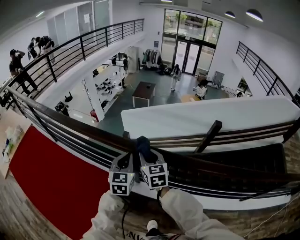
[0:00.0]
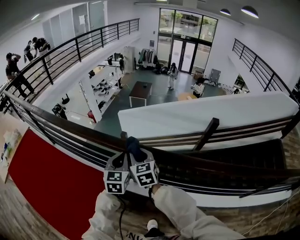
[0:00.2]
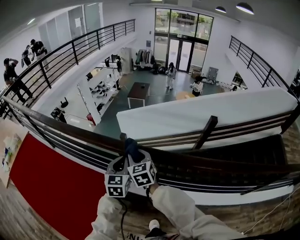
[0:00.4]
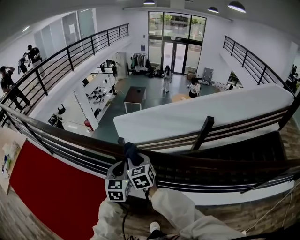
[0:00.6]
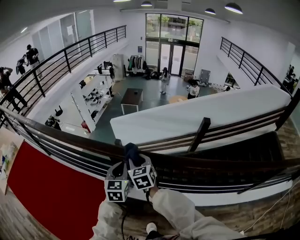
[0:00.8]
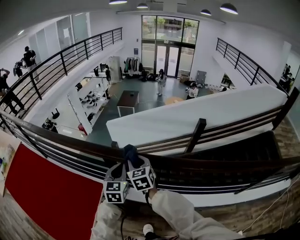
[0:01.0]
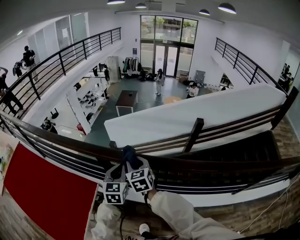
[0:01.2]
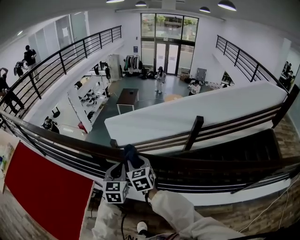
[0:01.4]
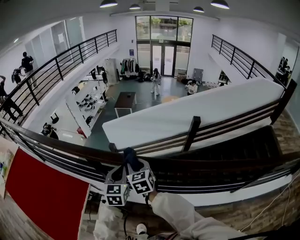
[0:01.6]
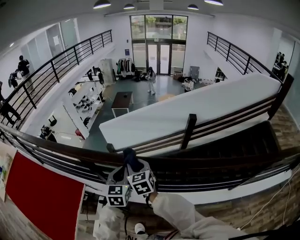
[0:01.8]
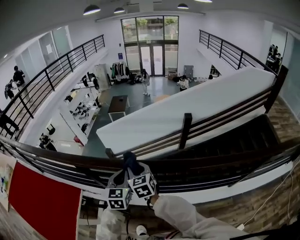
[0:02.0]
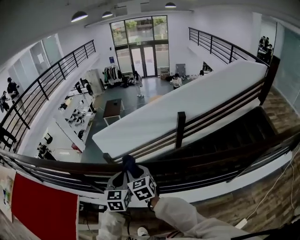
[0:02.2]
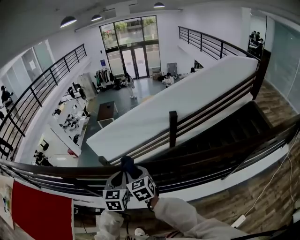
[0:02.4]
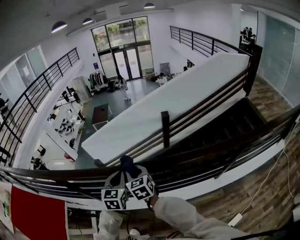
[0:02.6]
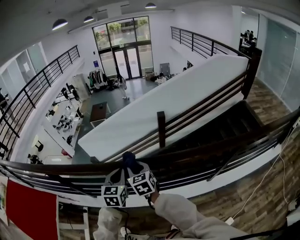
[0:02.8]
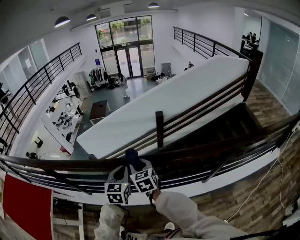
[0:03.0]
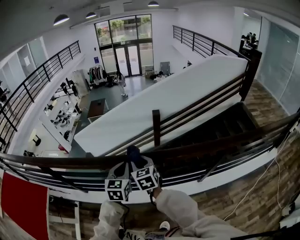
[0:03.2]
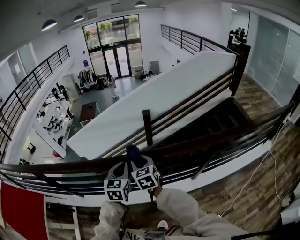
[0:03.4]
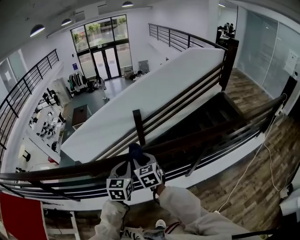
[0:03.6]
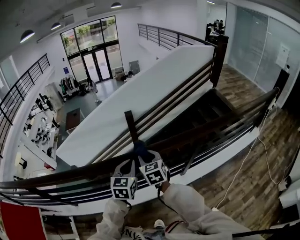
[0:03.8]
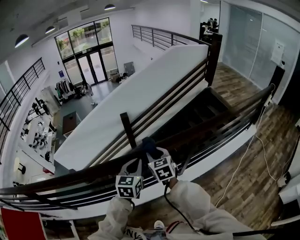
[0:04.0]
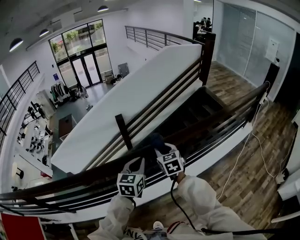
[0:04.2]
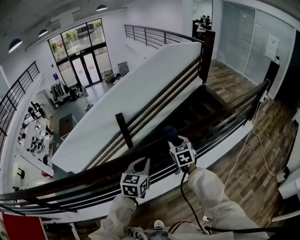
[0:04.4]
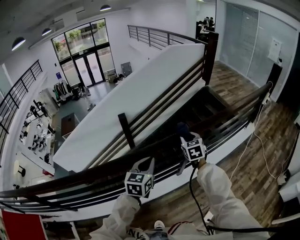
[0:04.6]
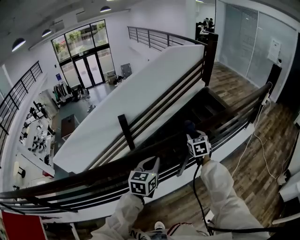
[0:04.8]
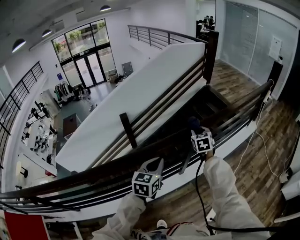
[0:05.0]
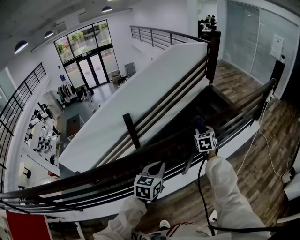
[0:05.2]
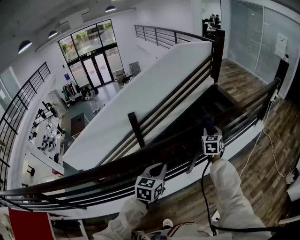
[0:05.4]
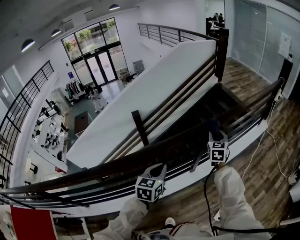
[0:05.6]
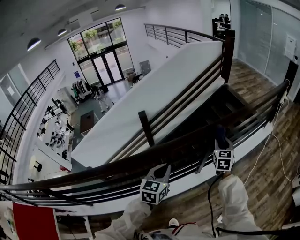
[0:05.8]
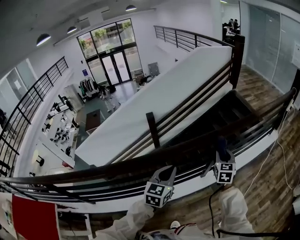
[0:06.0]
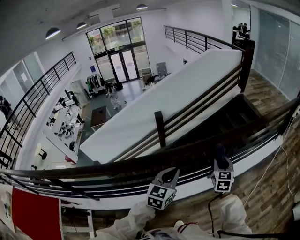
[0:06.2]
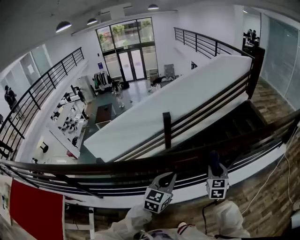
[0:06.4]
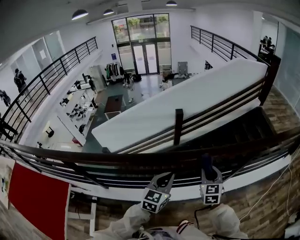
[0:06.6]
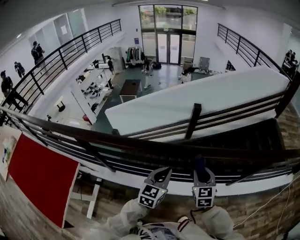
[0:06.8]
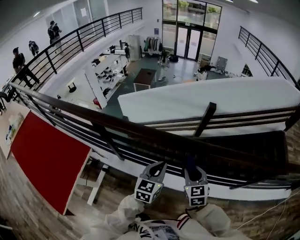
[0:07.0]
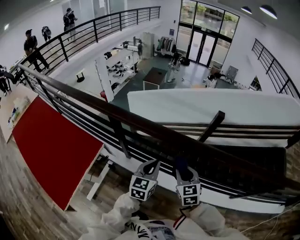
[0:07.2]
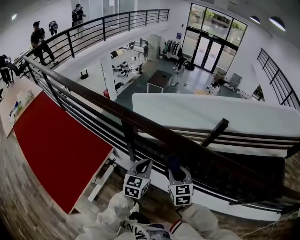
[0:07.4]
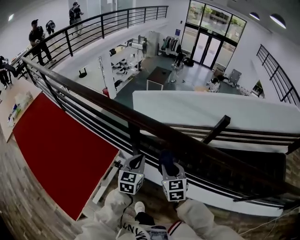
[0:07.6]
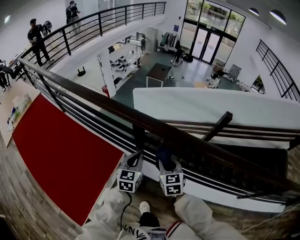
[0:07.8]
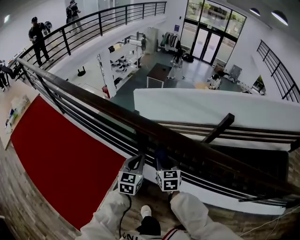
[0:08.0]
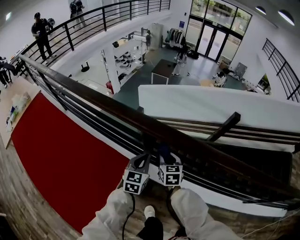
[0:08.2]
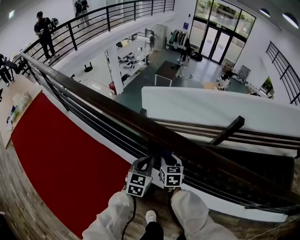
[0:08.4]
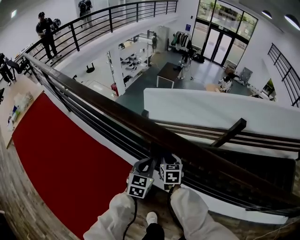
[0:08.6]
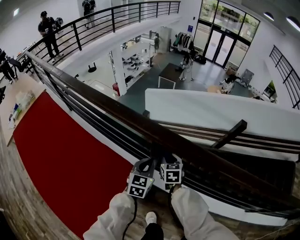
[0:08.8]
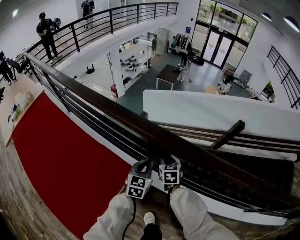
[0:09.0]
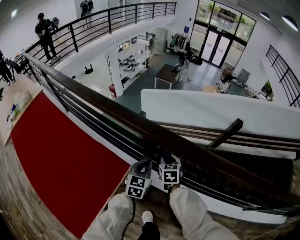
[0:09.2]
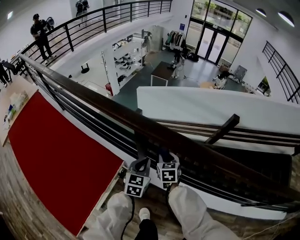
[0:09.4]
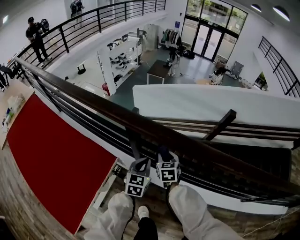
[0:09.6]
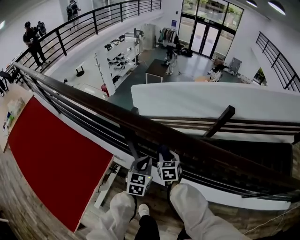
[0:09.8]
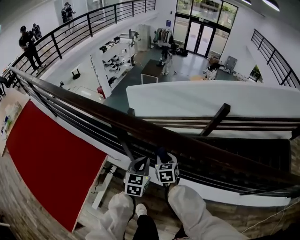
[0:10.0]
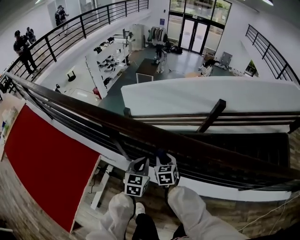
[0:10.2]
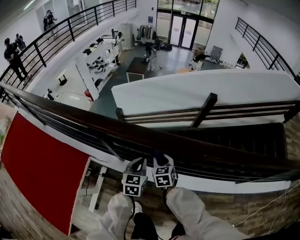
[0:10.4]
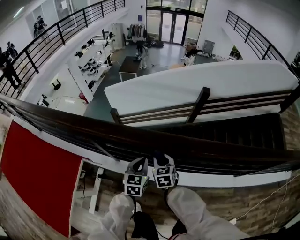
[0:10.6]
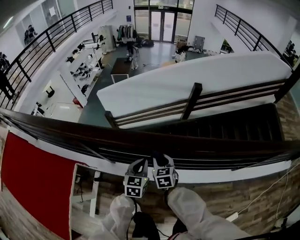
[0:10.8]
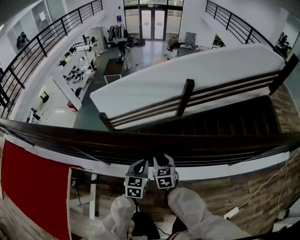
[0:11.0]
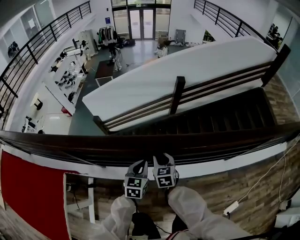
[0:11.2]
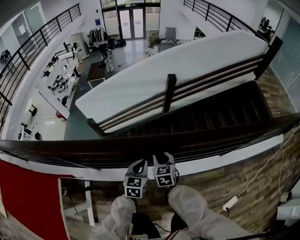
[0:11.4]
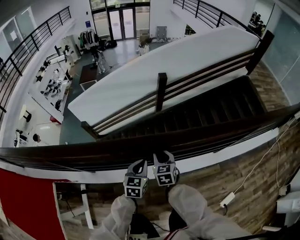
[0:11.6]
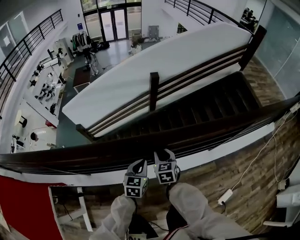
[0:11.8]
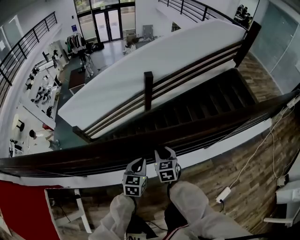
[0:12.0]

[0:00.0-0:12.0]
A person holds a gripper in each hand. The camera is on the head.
0:00.0 to 0:01.6: The two grippers go approximately 20 cm to the right.
0:01.6 to 0:03.0: Both grippers are carried to the right, about 40 cm.
0:03.0 to 0:04.4: The right gripper shifts by approximately 50 cm, and changes its angle by about 30 degrees. The left gripper changes place by approximately 35 cm, and changes its angle by roughly 30 degrees.
0:04.4 to 0:06.0: The left gripper goes roughly 5 cm backward; the right gripper goes about 10 cm to the right.
0:06.0 to 0:07.6: The pair of grippers is taken roughly 90 cm. The right gripper turns by roughly 60 degrees. Meanwhile the left gripper rotates some 50 degrees.
0:07.6 to 0:09.0: The right gripper is displaced forward, downward and to the left by about 25 cm, while the left gripper goes some 15 cm forward, downward and to the left.
0:09.0 to 0:10.4: The right gripper shifts about 25 cm to the right and backward, while the left gripper moves to the right, roughly 20 cm.
0:10.4 to 0:12.0: The left gripper moves approximately 35 cm, and turns by some 30 degrees, while the right gripper changes place by some 40 cm, and changes its angle by about 30 degrees.

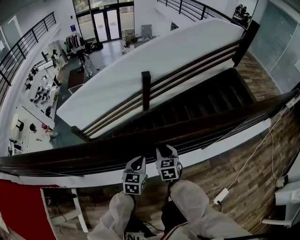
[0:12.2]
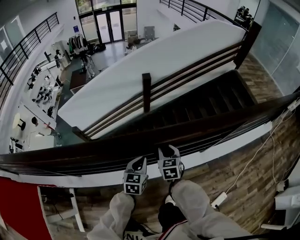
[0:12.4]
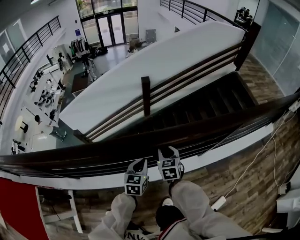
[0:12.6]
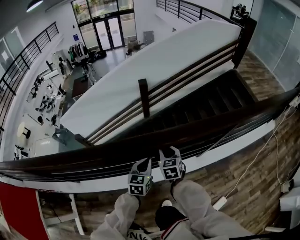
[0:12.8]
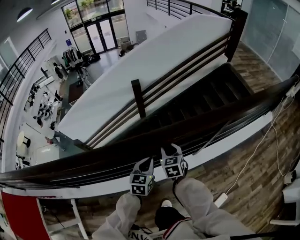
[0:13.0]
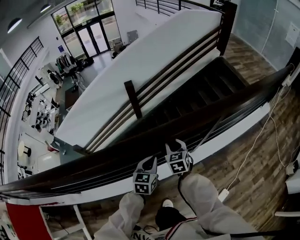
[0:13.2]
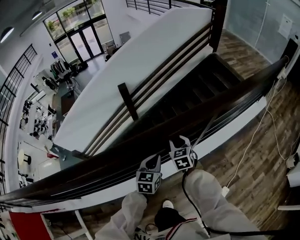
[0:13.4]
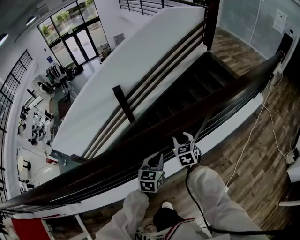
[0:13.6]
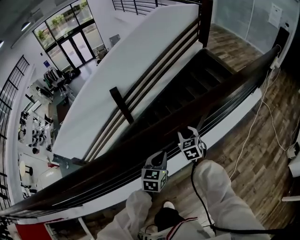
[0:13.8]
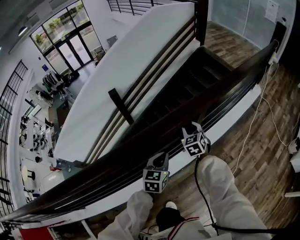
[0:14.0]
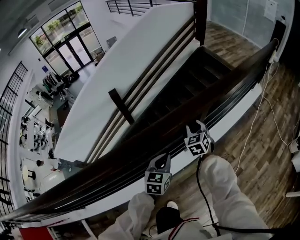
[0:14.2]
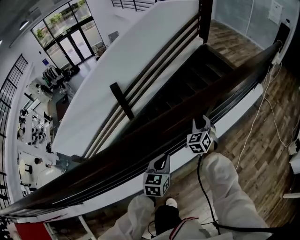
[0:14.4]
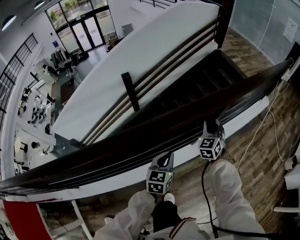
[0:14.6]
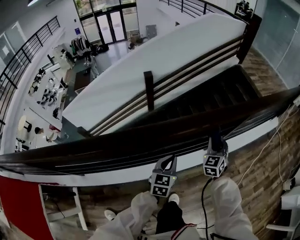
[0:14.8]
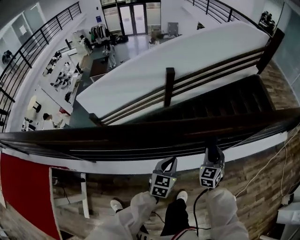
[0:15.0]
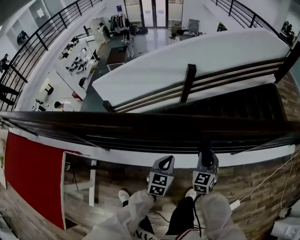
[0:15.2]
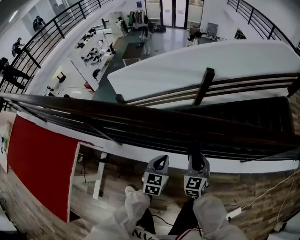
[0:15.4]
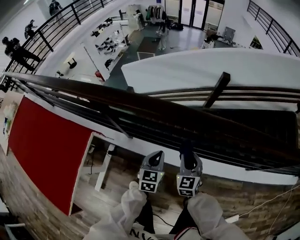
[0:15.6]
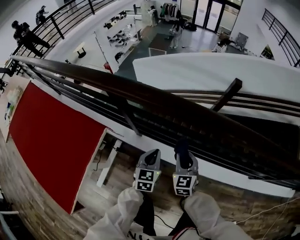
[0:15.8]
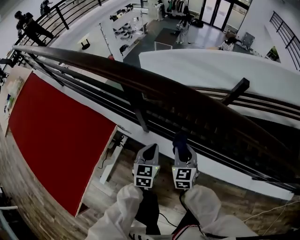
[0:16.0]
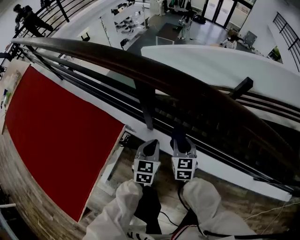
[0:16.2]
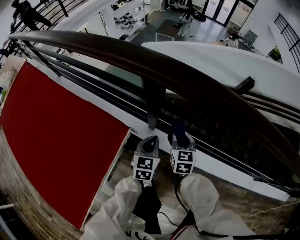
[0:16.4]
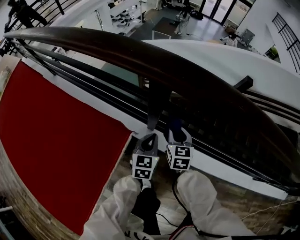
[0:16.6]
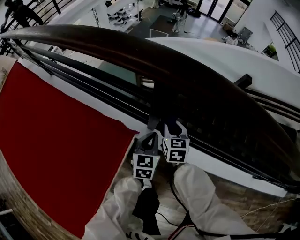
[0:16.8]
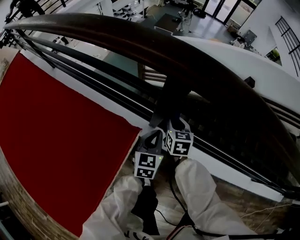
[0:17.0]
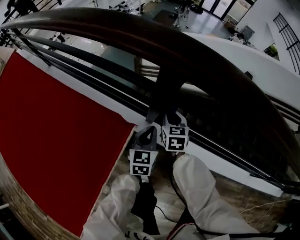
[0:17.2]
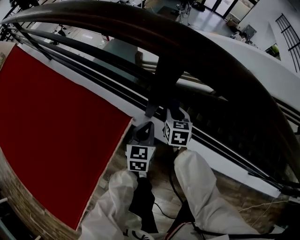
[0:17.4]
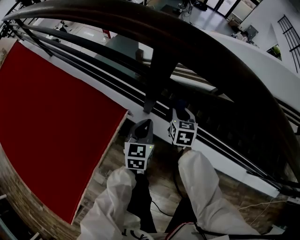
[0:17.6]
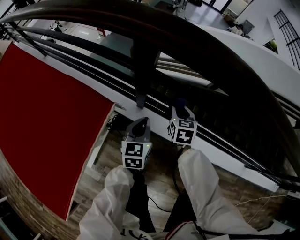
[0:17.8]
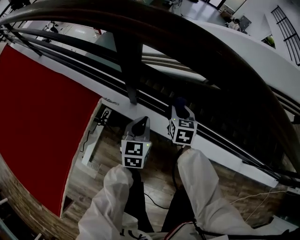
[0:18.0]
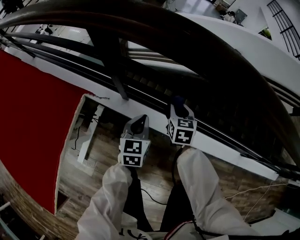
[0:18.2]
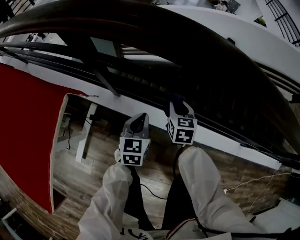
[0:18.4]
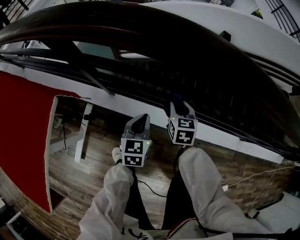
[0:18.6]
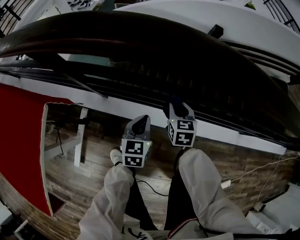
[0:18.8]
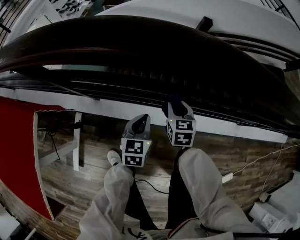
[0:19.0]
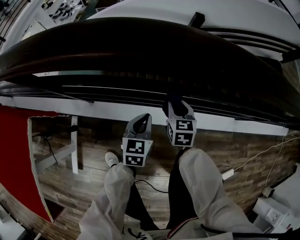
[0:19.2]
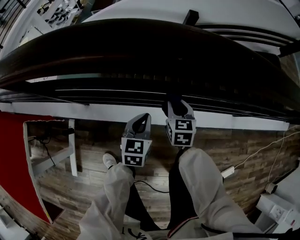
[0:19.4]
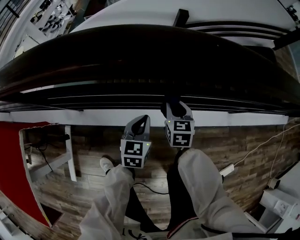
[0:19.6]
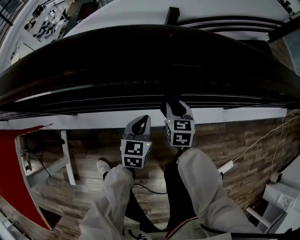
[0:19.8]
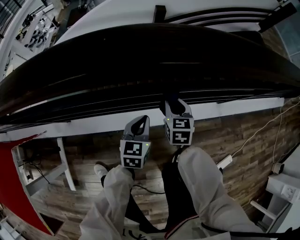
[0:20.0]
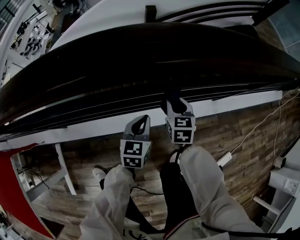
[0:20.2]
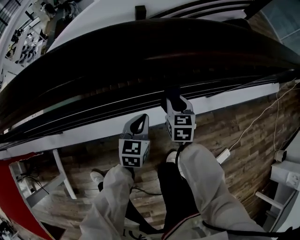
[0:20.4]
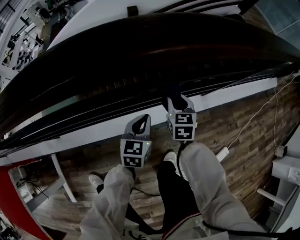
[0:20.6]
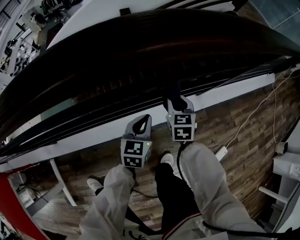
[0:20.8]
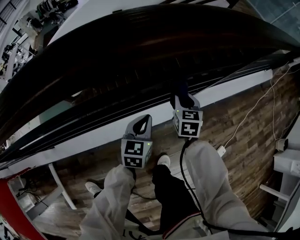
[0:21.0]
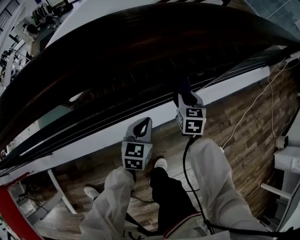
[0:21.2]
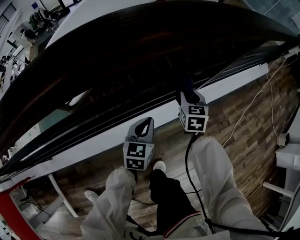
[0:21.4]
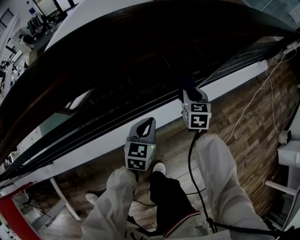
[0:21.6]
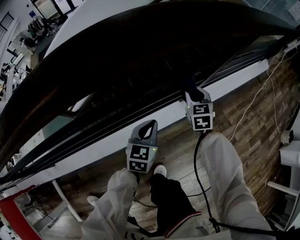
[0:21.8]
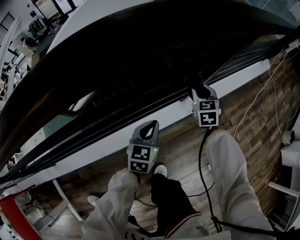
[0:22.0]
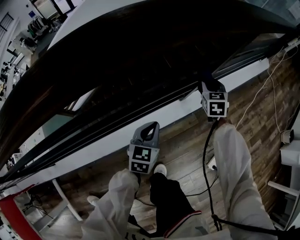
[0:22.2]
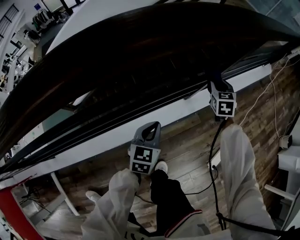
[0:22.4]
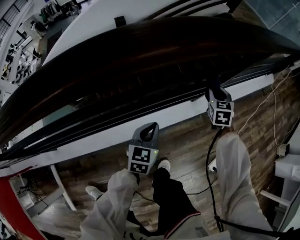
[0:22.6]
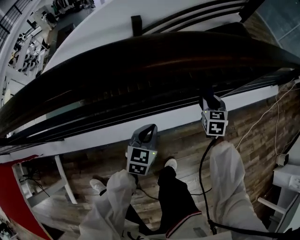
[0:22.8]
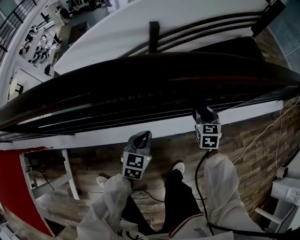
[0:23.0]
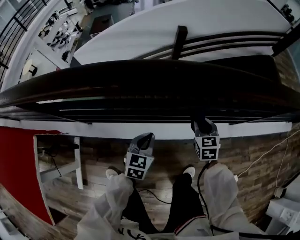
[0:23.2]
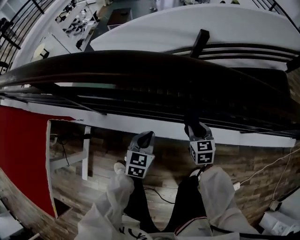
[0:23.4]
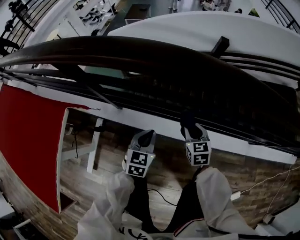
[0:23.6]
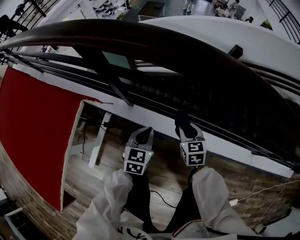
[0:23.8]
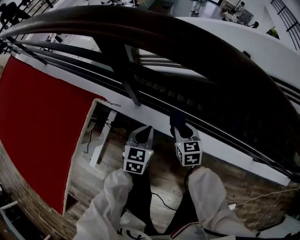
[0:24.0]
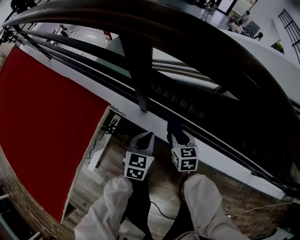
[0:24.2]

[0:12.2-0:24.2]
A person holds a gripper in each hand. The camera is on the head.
0:12.2 to 0:13.8: The left gripper moves to the right, some 35 cm; the right gripper goes roughly 40 cm to the right and forward.
0:13.8 to 0:15.2: Both grippers are carried approximately 50 cm. The left gripper turns by roughly 30 degrees.
0:15.2 to 0:16.6: Both grippers are carried approximately 60 cm. The left gripper turns by roughly 30 degrees; the right gripper swivels roughly 40 degrees.
0:16.6 to 0:18.2: Both grippers move to the right, roughly 15 cm.
0:18.2 to 0:19.8: The pair of grippers is taken to the right, approximately 40 cm. The right gripper turns by approximately 20 degrees. The left gripper rotates approximately 30 degrees.
0:19.8 to 0:21.2: Both grippers travel together to the right, approximately 35 cm. The right gripper turns by about 20 degrees. Meanwhile the left gripper turns by some 20 degrees.
0:21.2 to 0:22.6: The right gripper is displaced to the right and forward by roughly 10 cm. Meanwhile the left gripper moves roughly 10 cm to the right and comes back.
0:22.6 to 0:24.2: The two grippers travel together, roughly 90 cm. The left gripper rotates roughly 50 degrees, while the right gripper swivels roughly 60 degrees.
